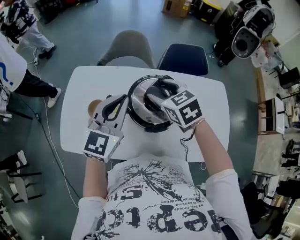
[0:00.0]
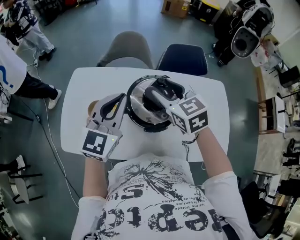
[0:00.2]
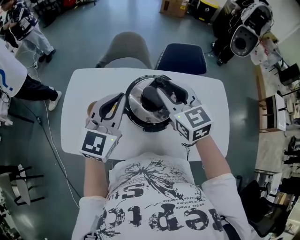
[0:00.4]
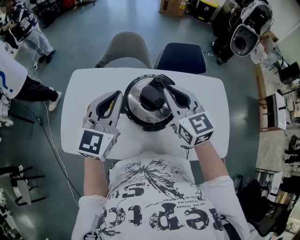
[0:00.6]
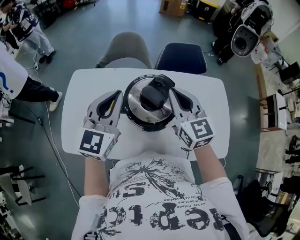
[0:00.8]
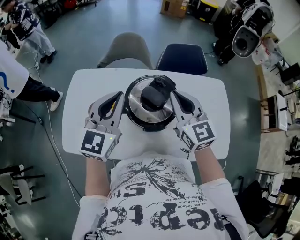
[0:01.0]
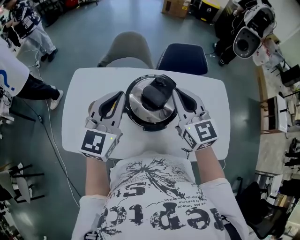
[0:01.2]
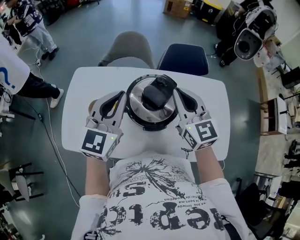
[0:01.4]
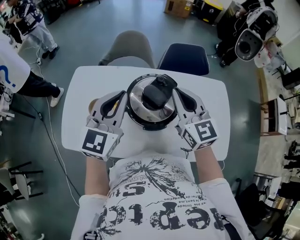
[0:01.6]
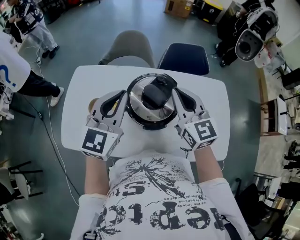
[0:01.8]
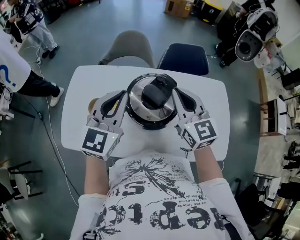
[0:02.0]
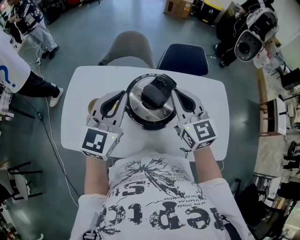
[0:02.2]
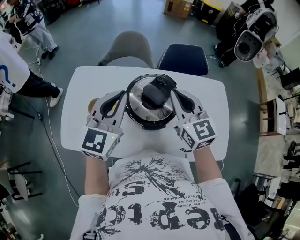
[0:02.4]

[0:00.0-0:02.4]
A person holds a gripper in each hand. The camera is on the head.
0:00.0 to 0:01.2: The right gripper goes some 10 cm to the right and upward, points its fingers some 30 degrees further upward, and closes its fingers.
0:01.2 to 0:02.4: Neither gripper changes place.

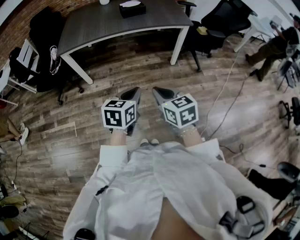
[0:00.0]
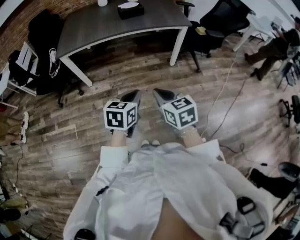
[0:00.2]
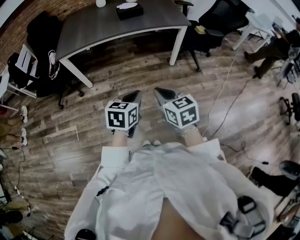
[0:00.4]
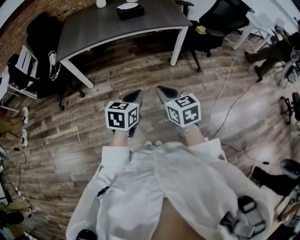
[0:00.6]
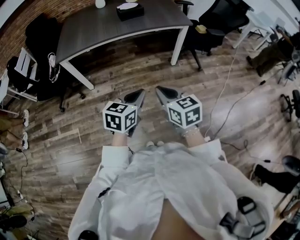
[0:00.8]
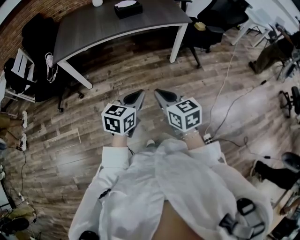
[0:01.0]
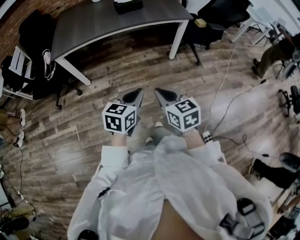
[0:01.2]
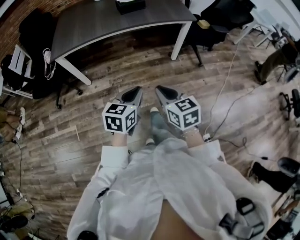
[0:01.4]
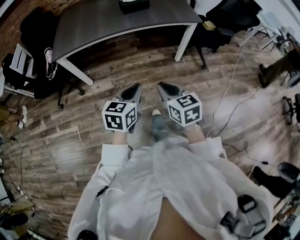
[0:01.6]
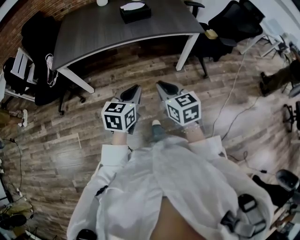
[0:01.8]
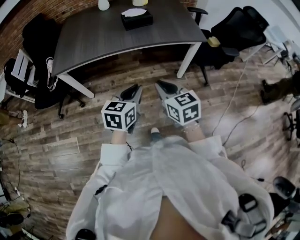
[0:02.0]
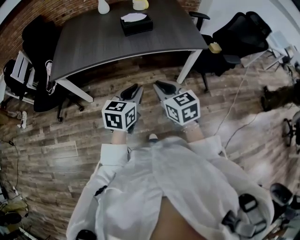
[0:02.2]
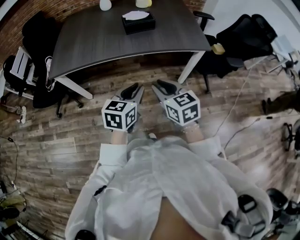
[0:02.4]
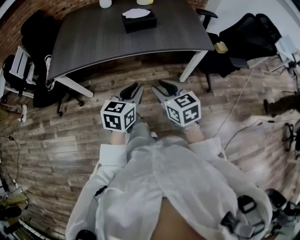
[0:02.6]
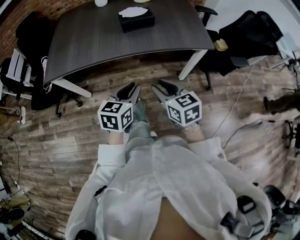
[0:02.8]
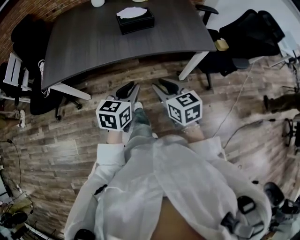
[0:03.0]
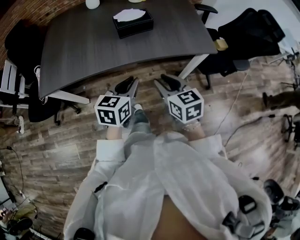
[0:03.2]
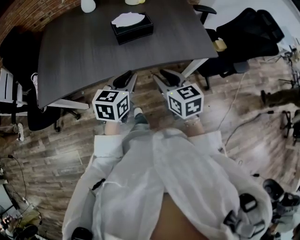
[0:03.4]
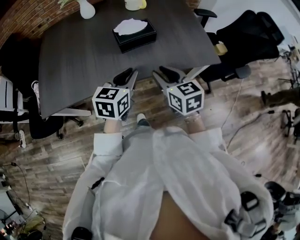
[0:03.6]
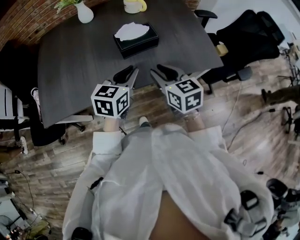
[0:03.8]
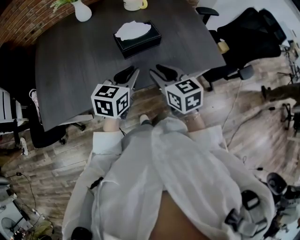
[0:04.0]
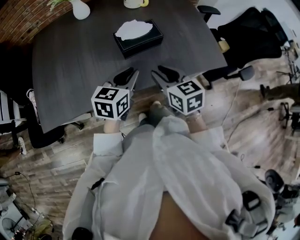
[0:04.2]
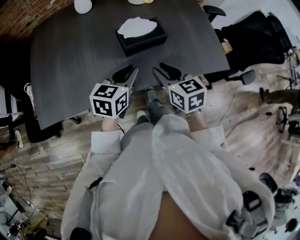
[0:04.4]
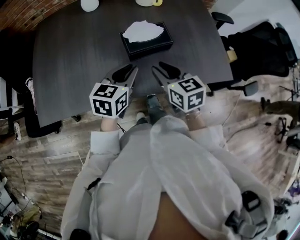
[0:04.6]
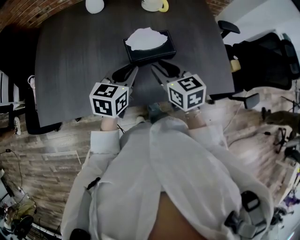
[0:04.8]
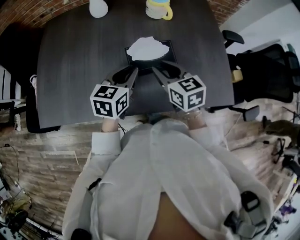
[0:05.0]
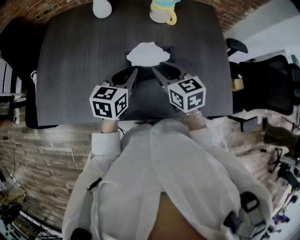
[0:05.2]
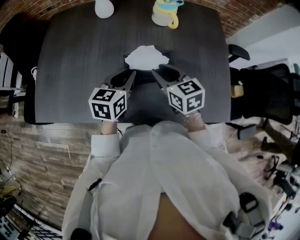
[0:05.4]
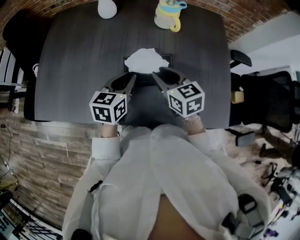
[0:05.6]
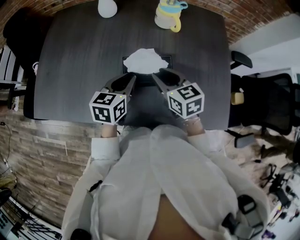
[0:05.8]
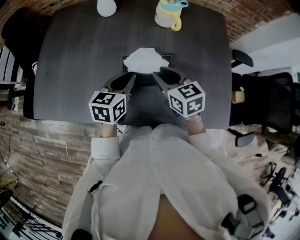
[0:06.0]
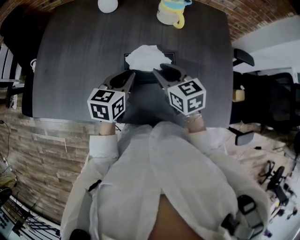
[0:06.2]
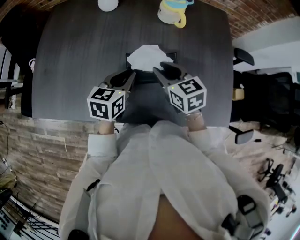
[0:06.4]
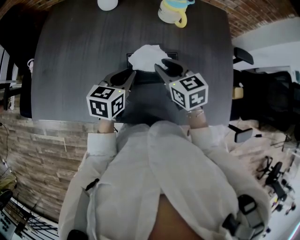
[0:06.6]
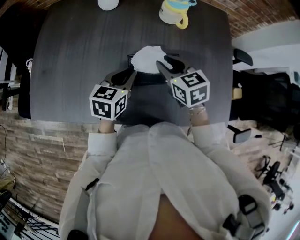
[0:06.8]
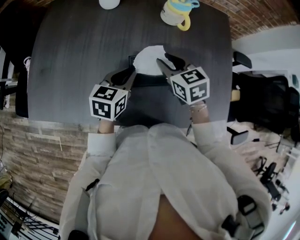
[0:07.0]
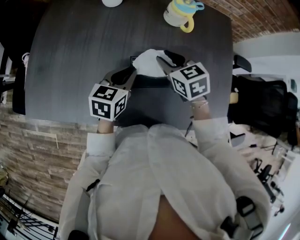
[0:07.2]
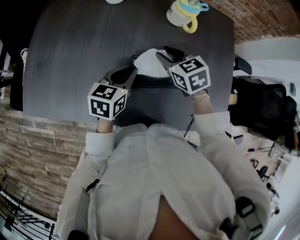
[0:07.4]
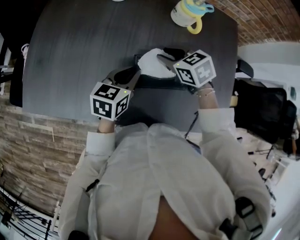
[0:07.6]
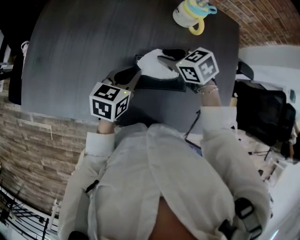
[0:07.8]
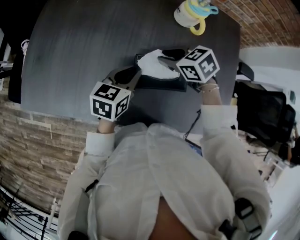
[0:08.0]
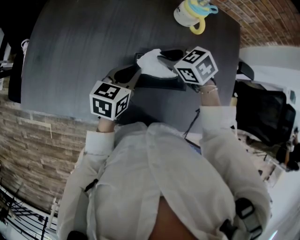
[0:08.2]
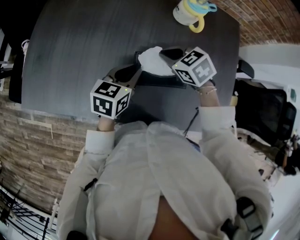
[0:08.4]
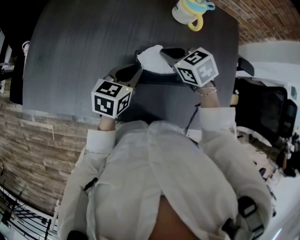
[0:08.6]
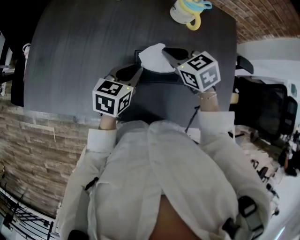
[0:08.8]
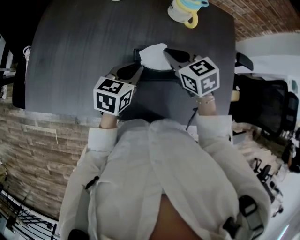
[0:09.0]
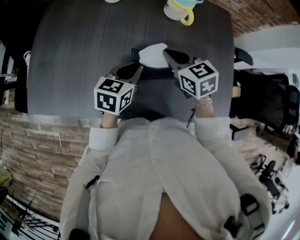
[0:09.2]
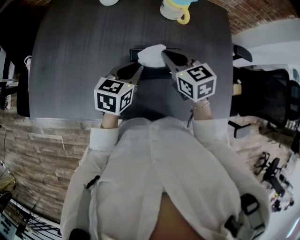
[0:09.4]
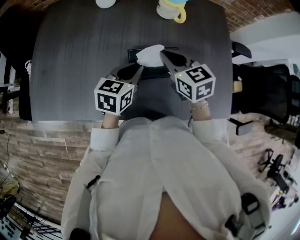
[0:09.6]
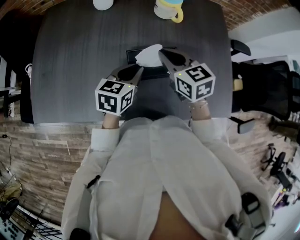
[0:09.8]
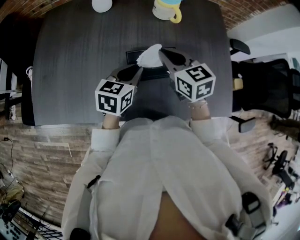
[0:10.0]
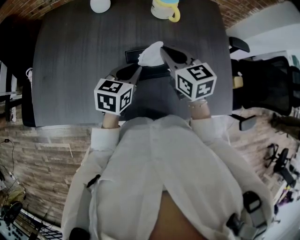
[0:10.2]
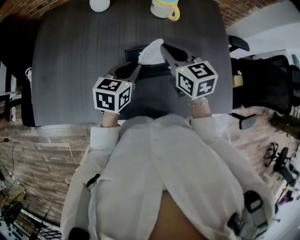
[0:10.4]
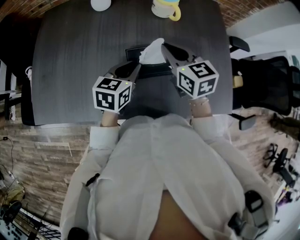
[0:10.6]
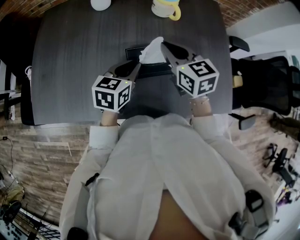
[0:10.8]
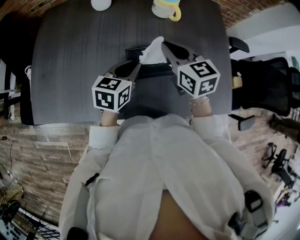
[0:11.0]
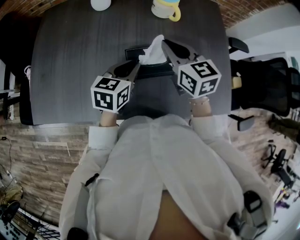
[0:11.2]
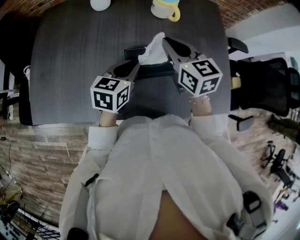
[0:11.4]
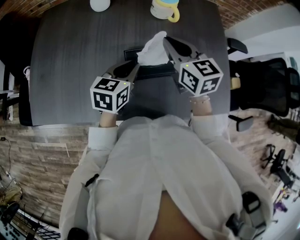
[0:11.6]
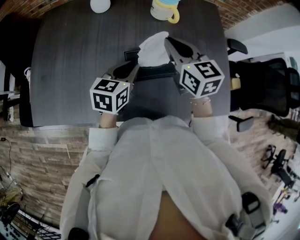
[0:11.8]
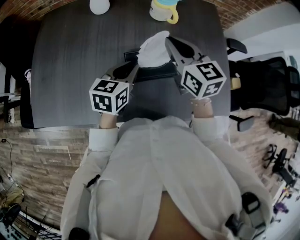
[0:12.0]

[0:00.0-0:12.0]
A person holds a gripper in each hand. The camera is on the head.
0:00.0 to 0:01.6: The two grippers go approximately 10 cm forward.
0:01.6 to 0:03.0: Both grippers move forward, roughly 30 cm. The right gripper opens its fingers.
0:03.0 to 0:04.4: The grippers both shift forward by some 25 cm.
0:04.4 to 0:06.0: Both grippers travel together forward, approximately 15 cm. The left gripper turns by some 20 degrees, while the right gripper swivels roughly 20 degrees.
0:06.0 to 0:07.6: The right gripper goes approximately 10 cm forward, and turns by about 30 degrees.
0:07.6 to 0:09.0: The right gripper shifts by roughly 5 cm, and closes up.
0:09.0 to 0:10.4: The right gripper shifts by some 5 cm, and rotates approximately 30 degrees.
0:10.4 to 0:12.0: The right gripper moves upward, roughly 5 cm.

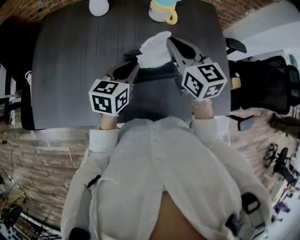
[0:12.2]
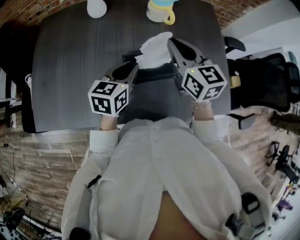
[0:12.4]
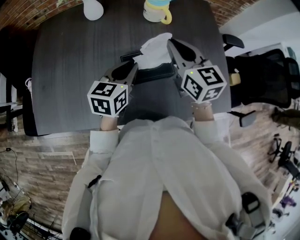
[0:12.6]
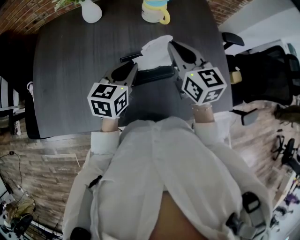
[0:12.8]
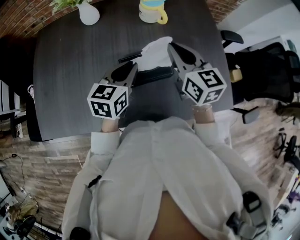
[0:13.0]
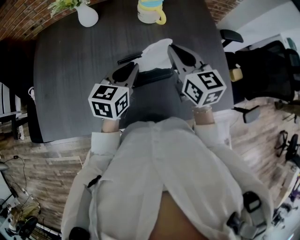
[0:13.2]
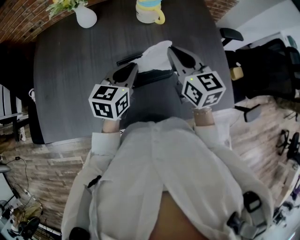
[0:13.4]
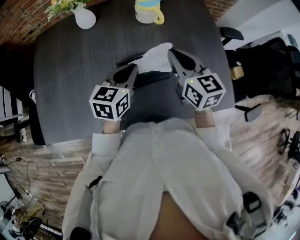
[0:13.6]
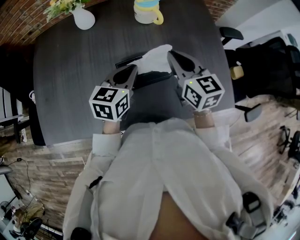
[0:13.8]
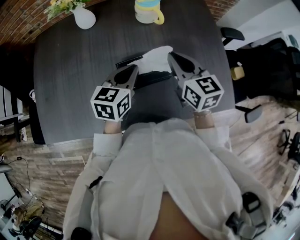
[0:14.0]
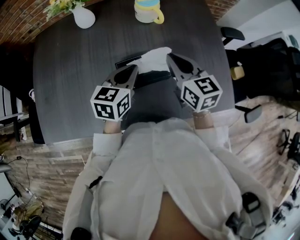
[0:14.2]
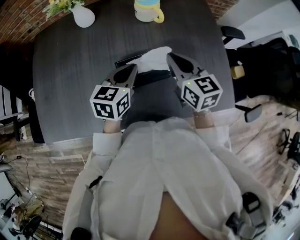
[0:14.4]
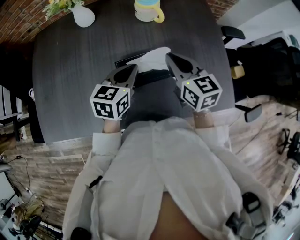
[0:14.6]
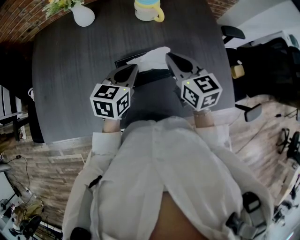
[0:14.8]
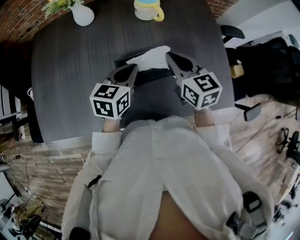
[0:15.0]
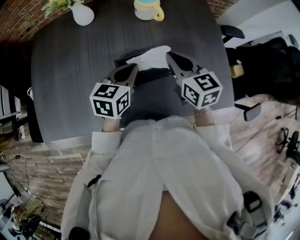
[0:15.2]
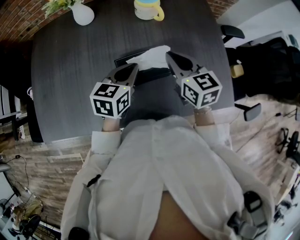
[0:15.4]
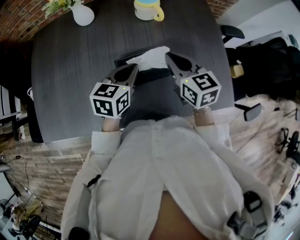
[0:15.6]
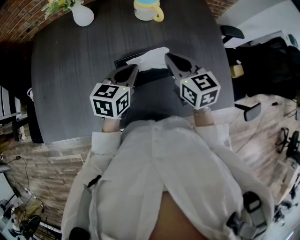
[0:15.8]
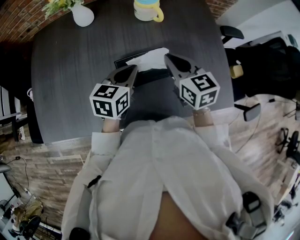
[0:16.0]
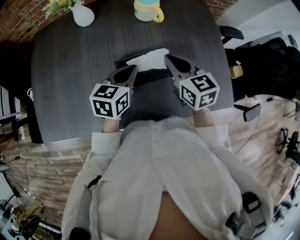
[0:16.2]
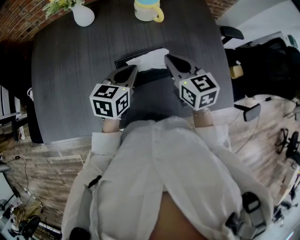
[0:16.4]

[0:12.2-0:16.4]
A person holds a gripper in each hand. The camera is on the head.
0:12.2 to 0:13.6: The right gripper is displaced to the right by about 5 cm.
0:13.6 to 0:15.0: The grippers make only small movements.
0:15.0 to 0:16.4: Both grippers stay about where they are.

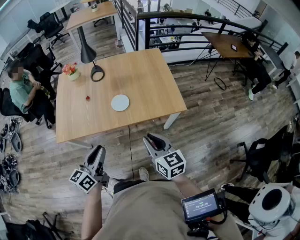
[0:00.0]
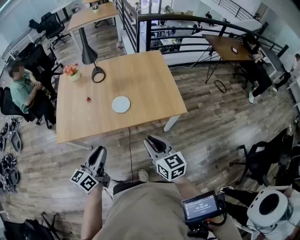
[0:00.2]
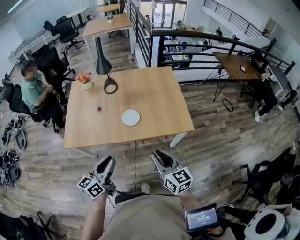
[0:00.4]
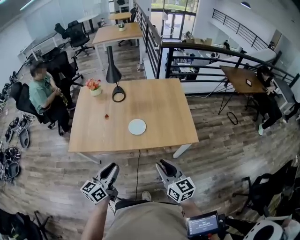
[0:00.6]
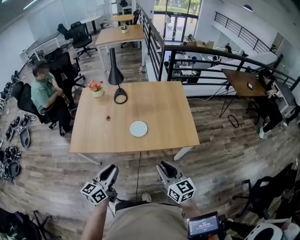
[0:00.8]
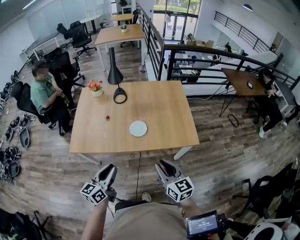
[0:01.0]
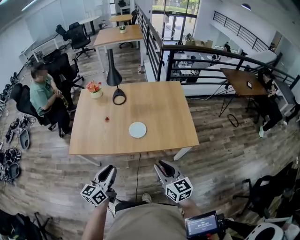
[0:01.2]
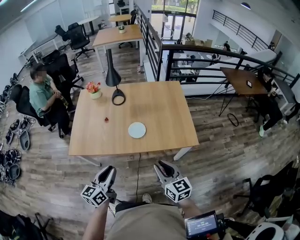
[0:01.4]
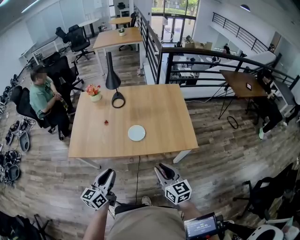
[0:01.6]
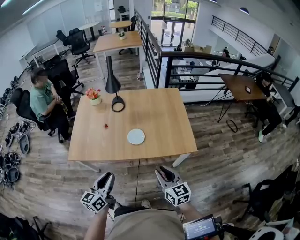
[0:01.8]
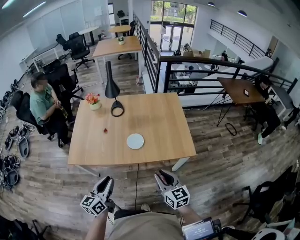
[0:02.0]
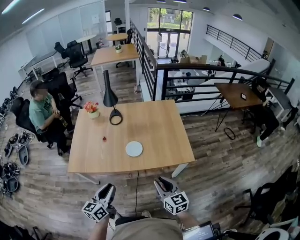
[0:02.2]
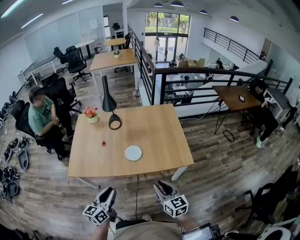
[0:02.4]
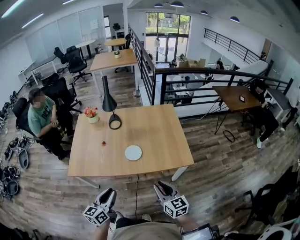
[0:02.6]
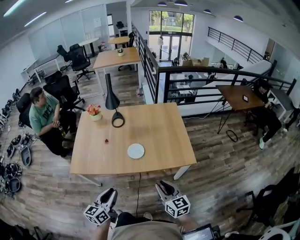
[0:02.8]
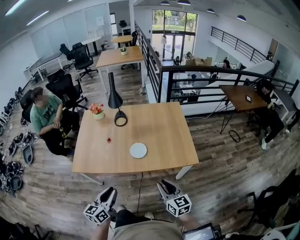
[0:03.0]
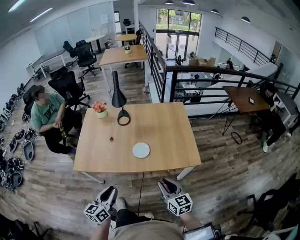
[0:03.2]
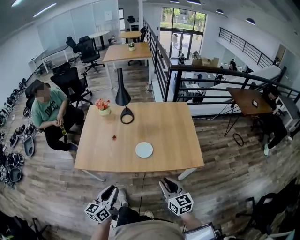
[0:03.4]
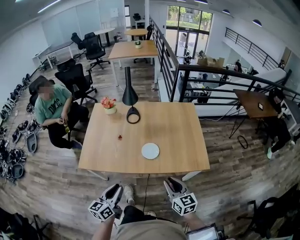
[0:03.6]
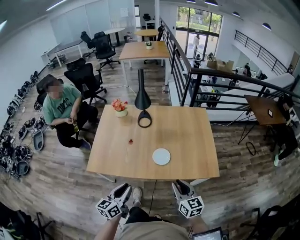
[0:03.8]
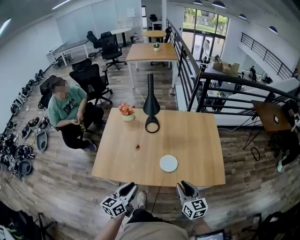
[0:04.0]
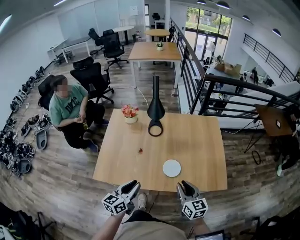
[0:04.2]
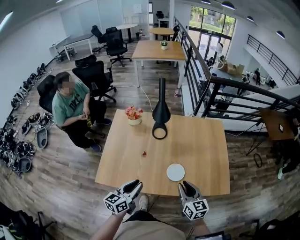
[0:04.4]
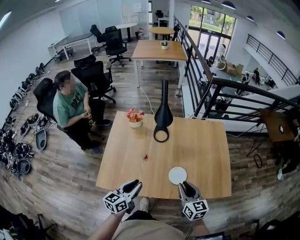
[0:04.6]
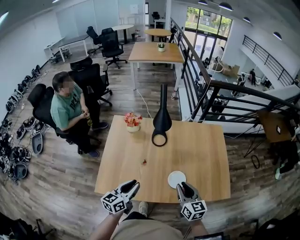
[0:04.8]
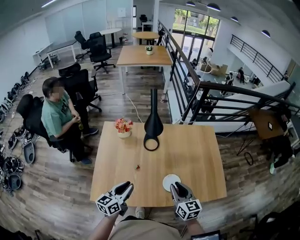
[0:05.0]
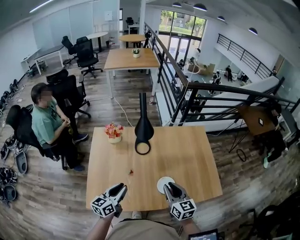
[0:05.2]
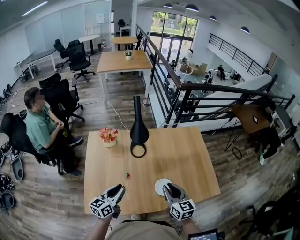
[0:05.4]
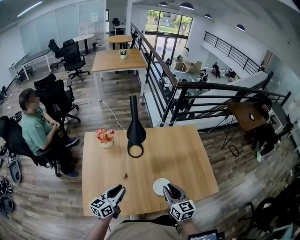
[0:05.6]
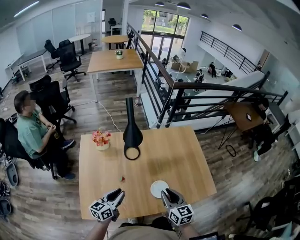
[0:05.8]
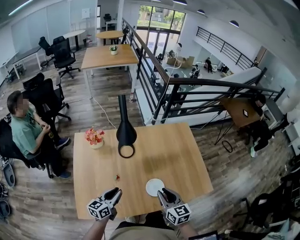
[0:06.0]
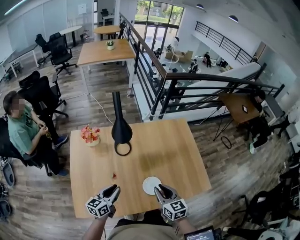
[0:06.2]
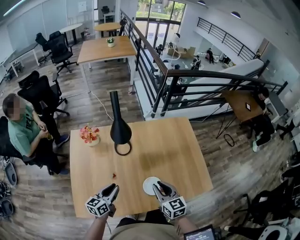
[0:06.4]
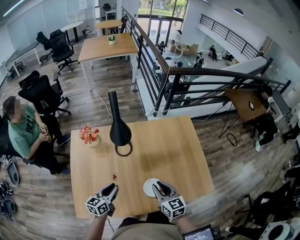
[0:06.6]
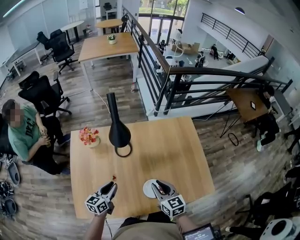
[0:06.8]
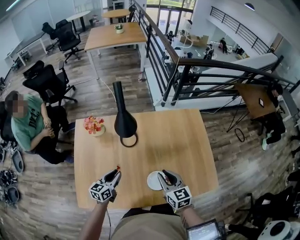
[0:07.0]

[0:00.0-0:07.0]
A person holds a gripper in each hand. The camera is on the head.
0:00.0 to 0:02.8: The grippers stay close to where they were, moving slightly.
0:02.8 to 0:04.2: Both grippers move forward and to the left, approximately 25 cm.
0:04.2 to 0:05.6: The two grippers go some 20 cm forward and to the left.
0:05.6 to 0:07.0: Both grippers move forward and downward, approximately 15 cm.
